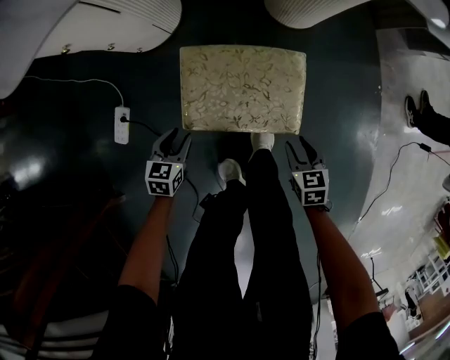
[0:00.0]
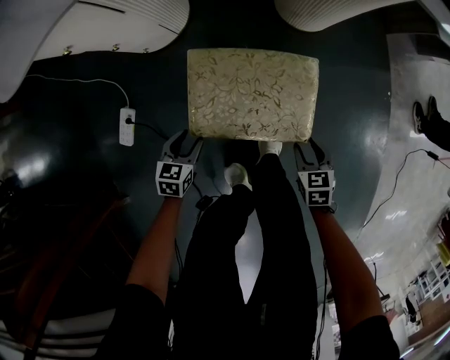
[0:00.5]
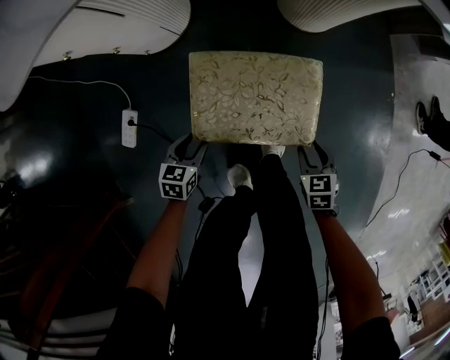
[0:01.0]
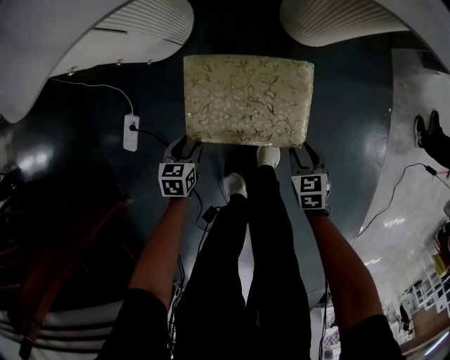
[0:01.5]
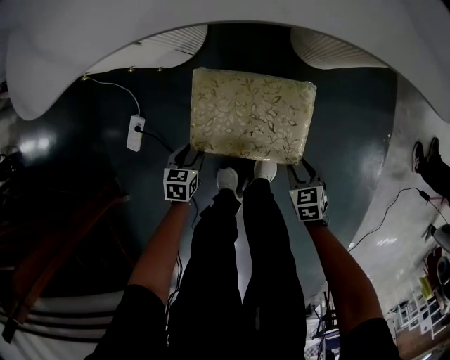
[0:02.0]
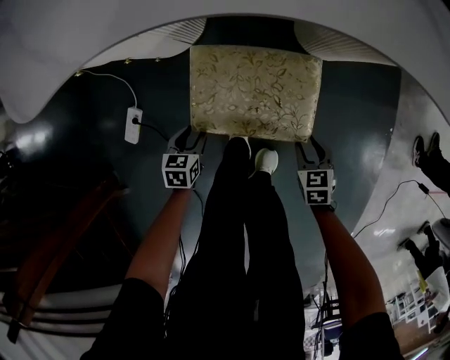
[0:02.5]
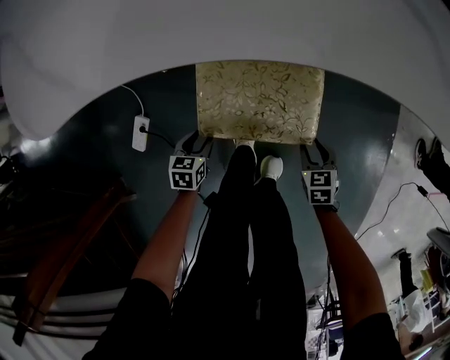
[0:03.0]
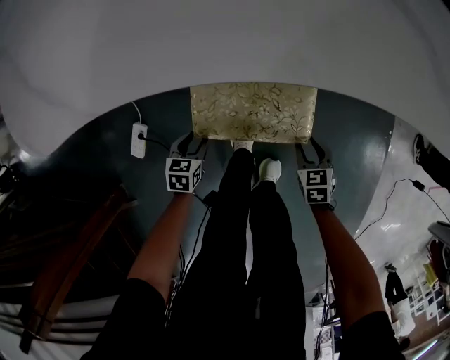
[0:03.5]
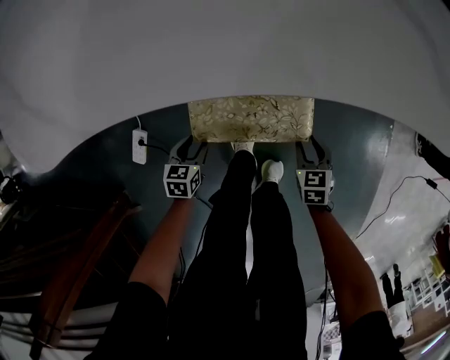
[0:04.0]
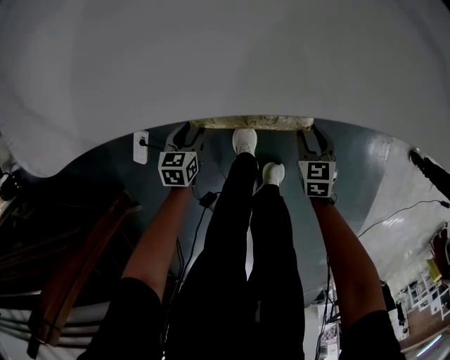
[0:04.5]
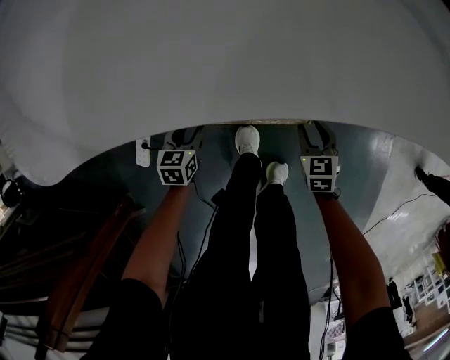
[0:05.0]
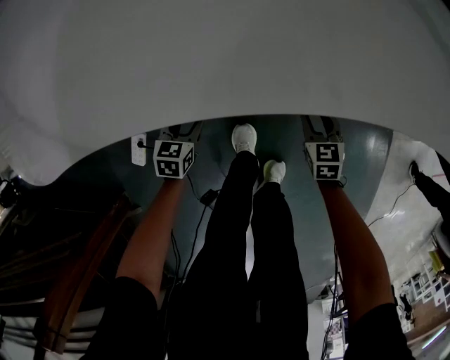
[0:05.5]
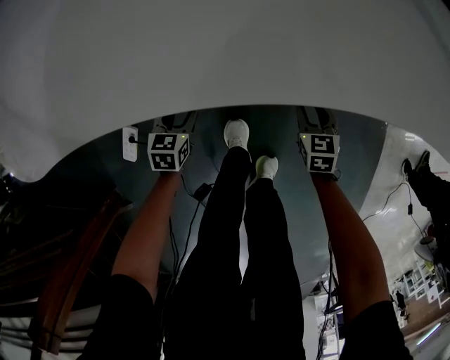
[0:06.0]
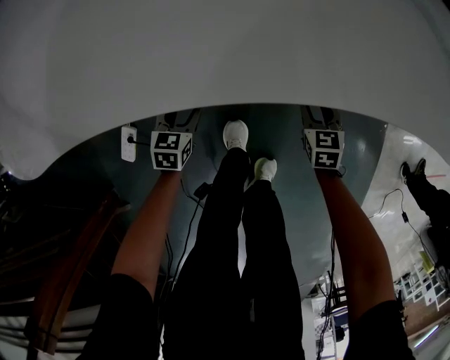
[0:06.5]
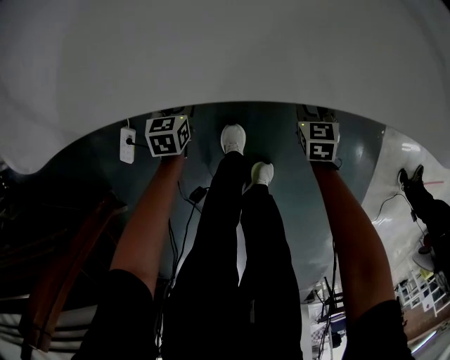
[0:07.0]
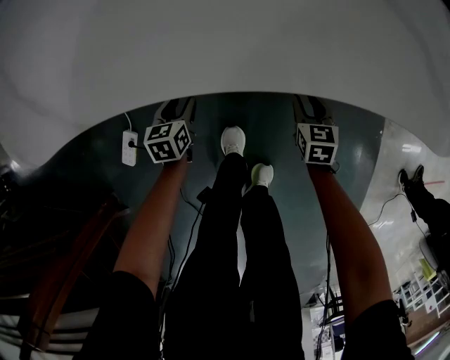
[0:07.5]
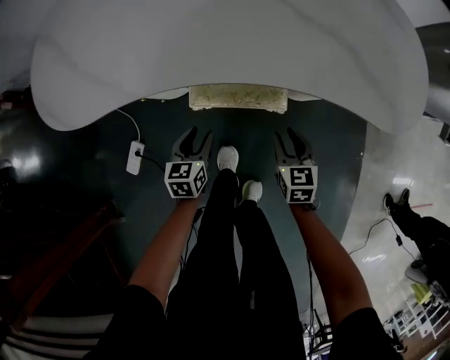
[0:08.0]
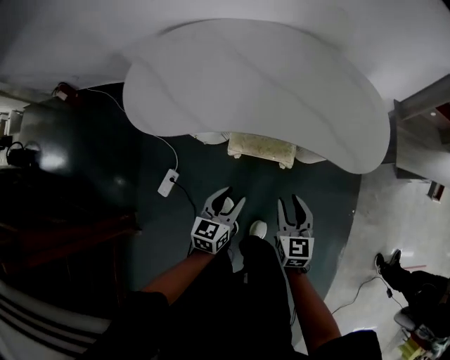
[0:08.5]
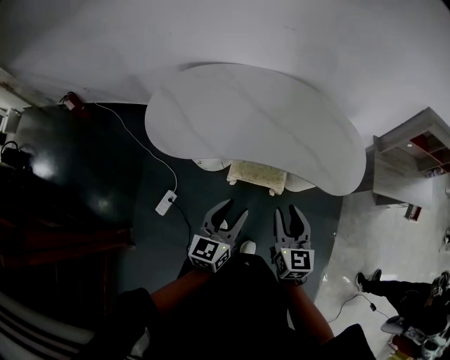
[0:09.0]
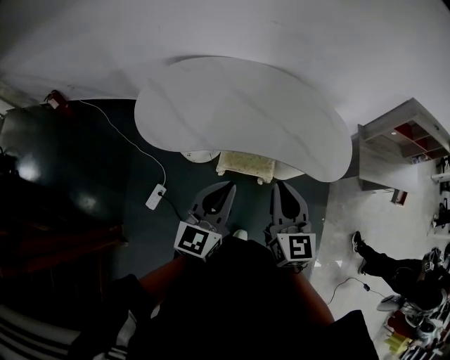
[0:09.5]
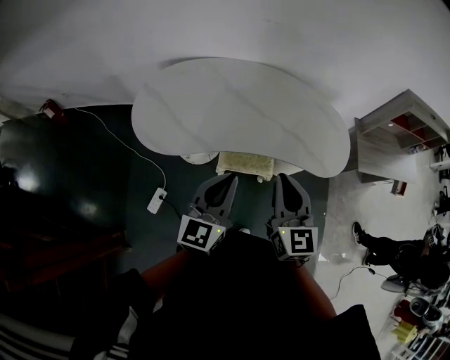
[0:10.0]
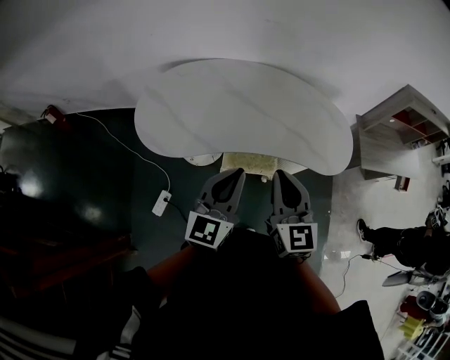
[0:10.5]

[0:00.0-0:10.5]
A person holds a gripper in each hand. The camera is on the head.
0:00.0 to 0:04.0: The grippers stay close to where they were, moving slightly.
0:04.0 to 0:06.5: Both grippers move forward, approximately 10 cm.
0:06.5 to 0:08.5: The two grippers go roughly 40 cm upward. The left gripper changes its angle by approximately 30 degrees, while the right gripper turns by some 30 degrees.
0:08.5 to 0:10.5: The grippers both shift upward by roughly 30 cm. The left gripper turns by some 30 degrees, and closes up. Meanwhile the right gripper turns by roughly 20 degrees, and closes its fingers.

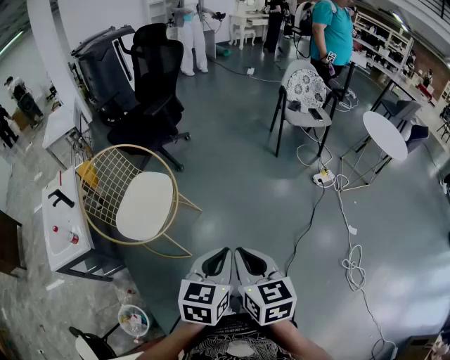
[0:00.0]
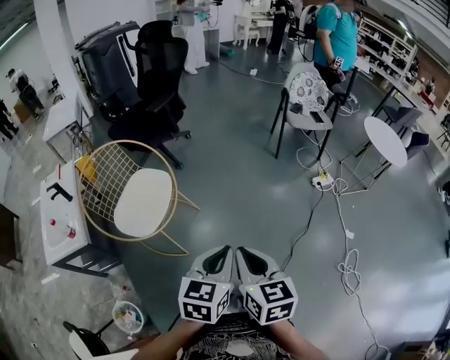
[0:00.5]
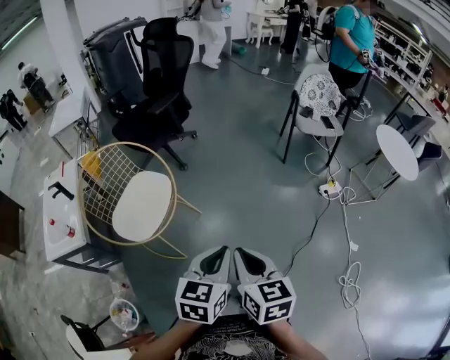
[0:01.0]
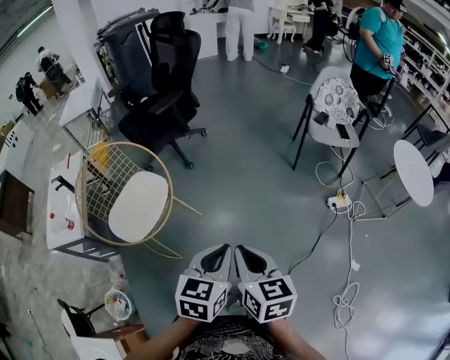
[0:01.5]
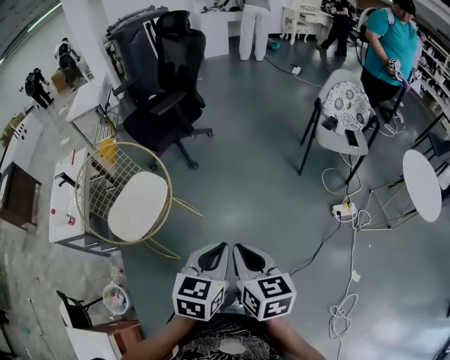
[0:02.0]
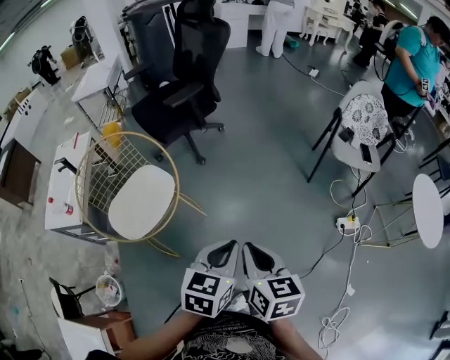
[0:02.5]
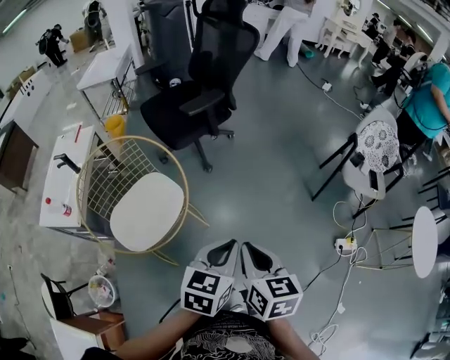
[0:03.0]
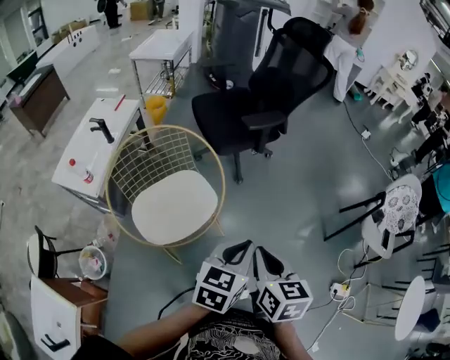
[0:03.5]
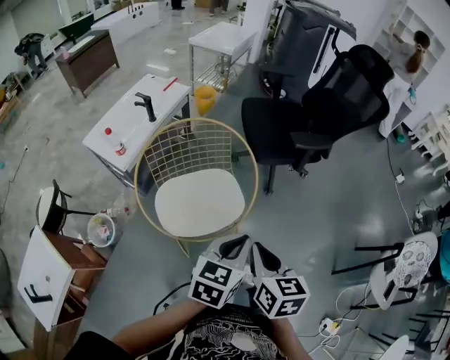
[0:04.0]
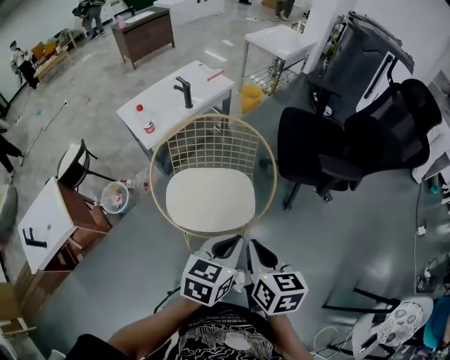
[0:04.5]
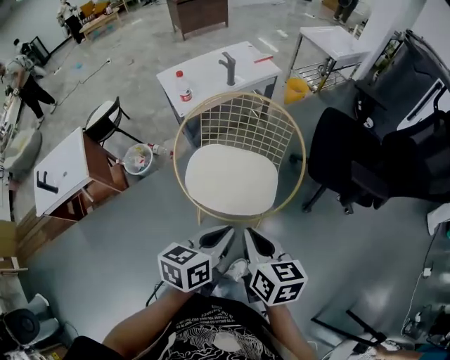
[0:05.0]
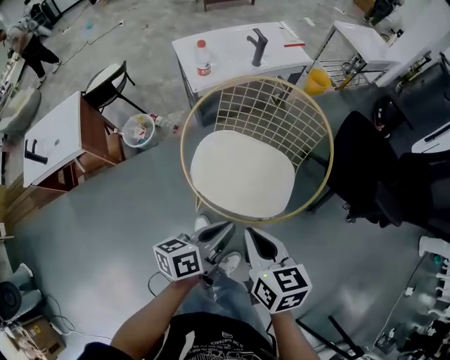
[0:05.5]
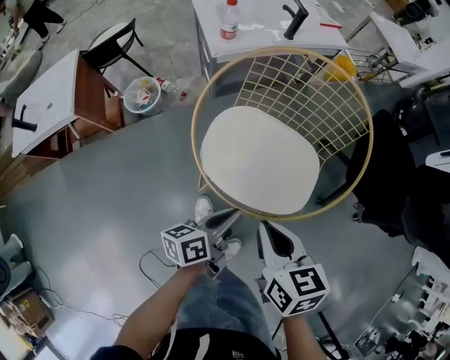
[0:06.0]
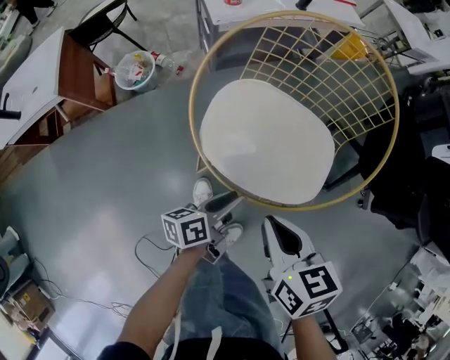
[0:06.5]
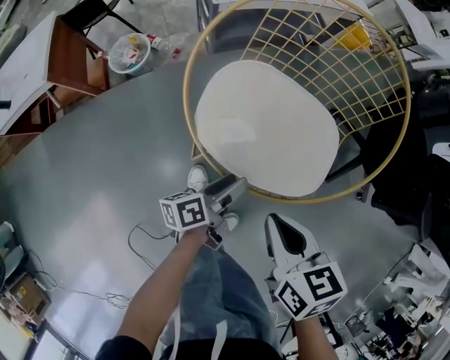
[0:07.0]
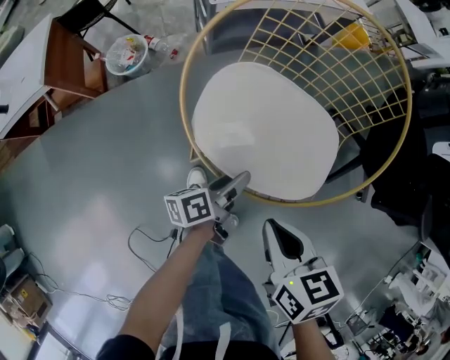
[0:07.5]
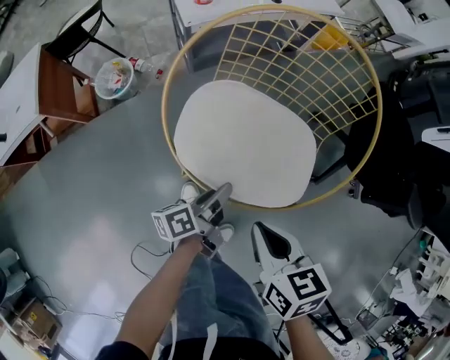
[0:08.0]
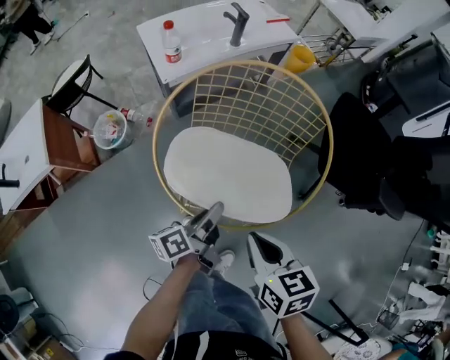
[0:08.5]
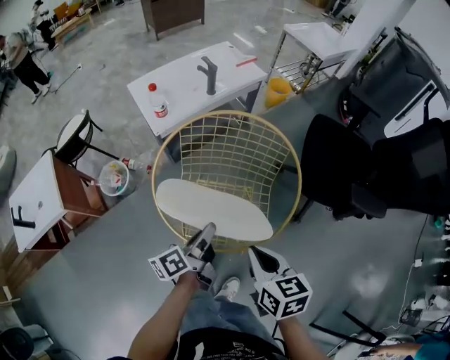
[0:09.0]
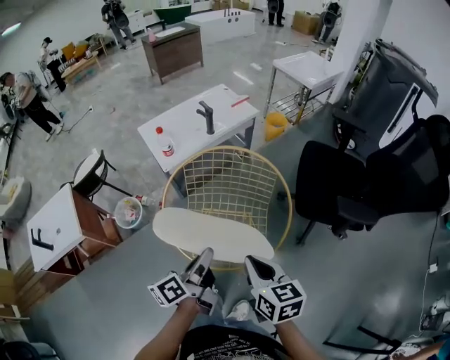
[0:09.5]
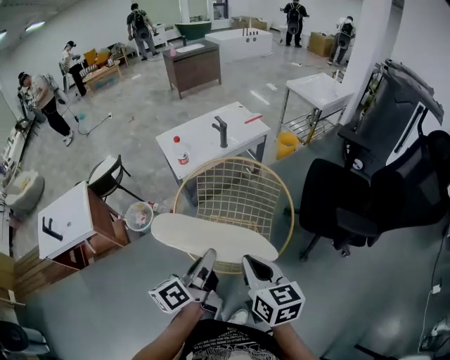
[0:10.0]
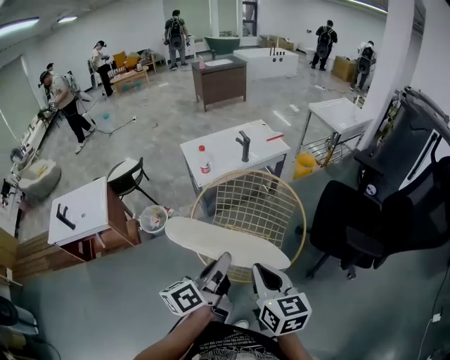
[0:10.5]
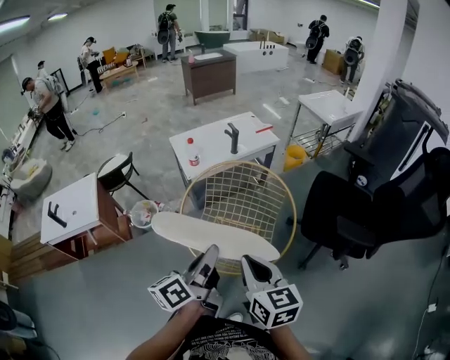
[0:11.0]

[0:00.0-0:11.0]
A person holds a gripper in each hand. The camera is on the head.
0:00.0 to 0:02.0: The grippers both shift forward and to the right by approximately 20 cm.
0:02.0 to 0:03.5: Both grippers travel together forward and to the left, approximately 25 cm.
0:03.5 to 0:05.5: The right gripper shifts by roughly 20 cm, and changes its angle by some 70 degrees; the left gripper shifts approximately 15 cm downward, and turns by about 70 degrees.
0:05.5 to 0:07.5: The left gripper travels downward by roughly 25 cm, turns by some 30 degrees, and opens up. Meanwhile the right gripper moves downward, approximately 15 cm.
0:07.5 to 0:09.0: The right gripper goes approximately 15 cm upward and to the right, and rotates about 20 degrees, while the left gripper goes approximately 20 cm upward, and closes up.
0:09.0 to 0:11.0: The right gripper heads upward, covering approximately 15 cm, and swivels approximately 20 degrees; the left gripper travels upward and backward by some 20 cm, and swivels approximately 20 degrees.

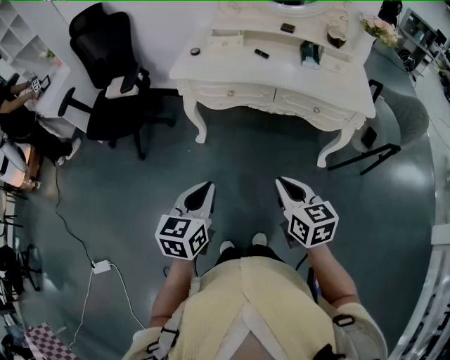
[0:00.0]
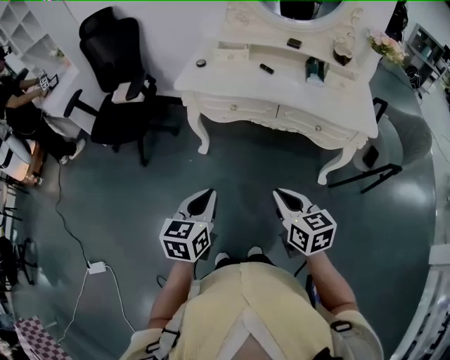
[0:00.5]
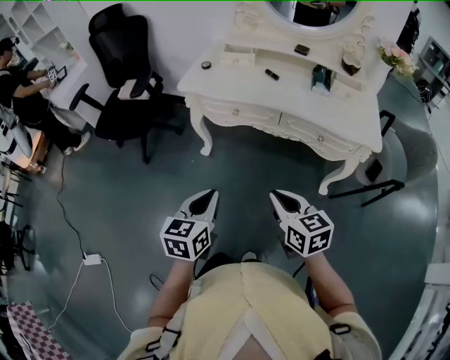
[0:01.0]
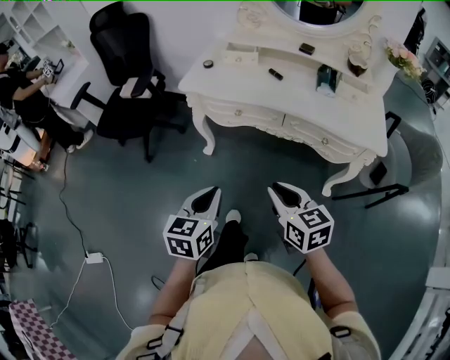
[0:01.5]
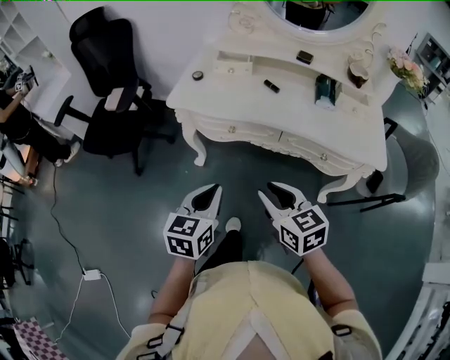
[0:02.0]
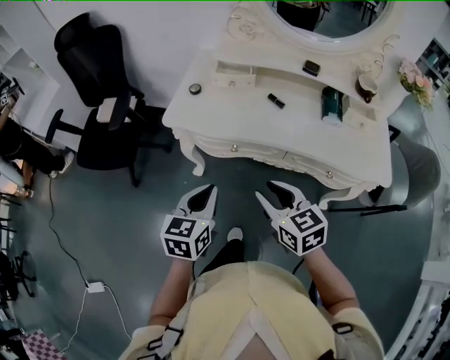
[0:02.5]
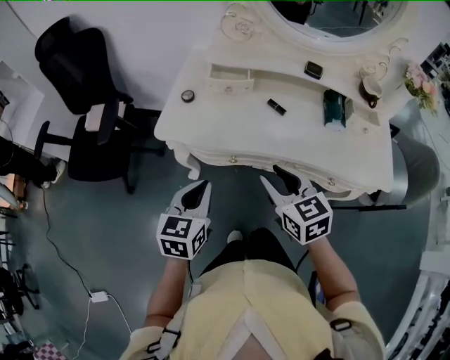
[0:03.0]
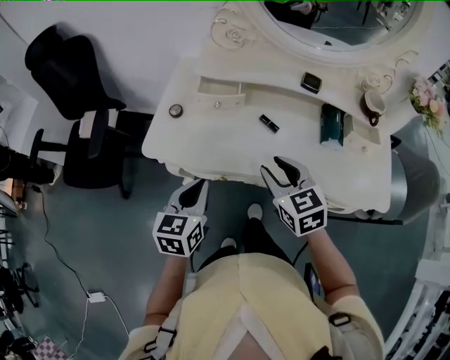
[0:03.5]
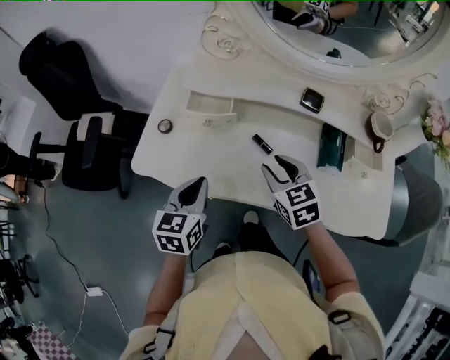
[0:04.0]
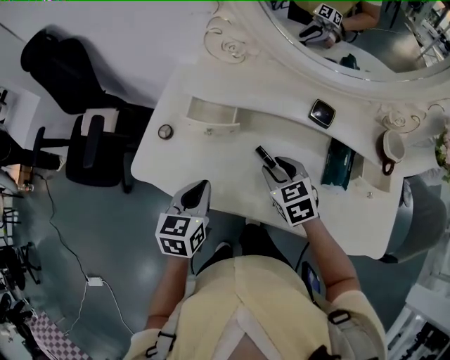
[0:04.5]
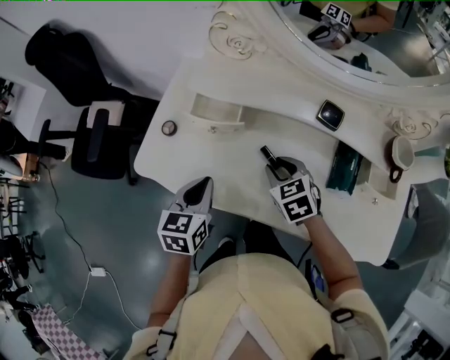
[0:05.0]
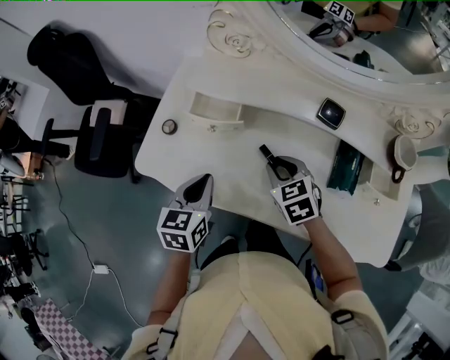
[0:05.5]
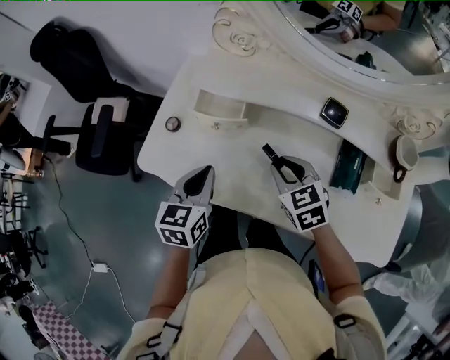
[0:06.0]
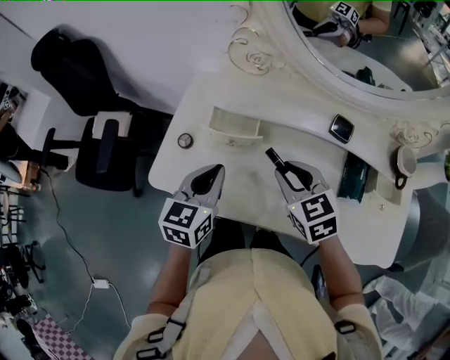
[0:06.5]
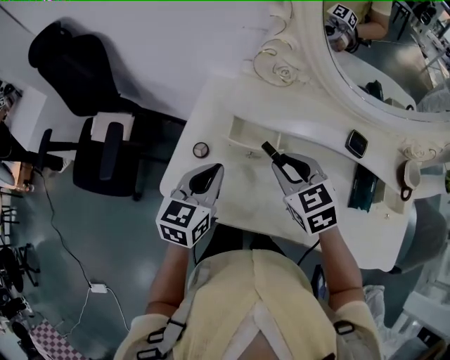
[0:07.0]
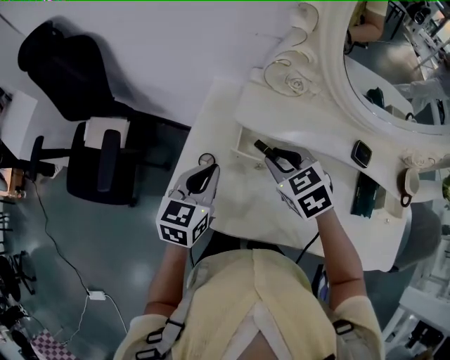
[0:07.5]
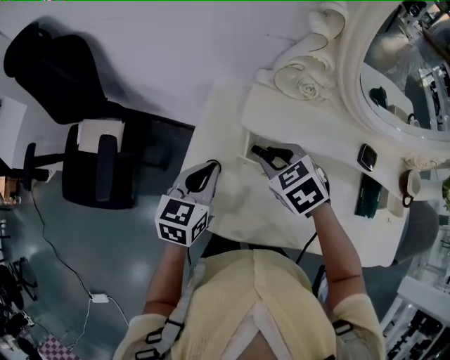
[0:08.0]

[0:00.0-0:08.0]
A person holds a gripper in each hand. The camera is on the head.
0:00.0 to 0:02.0: The two grippers go roughly 15 cm forward.
0:02.0 to 0:04.0: Both grippers travel together forward, some 35 cm.
0:04.0 to 0:06.0: The left gripper heads forward, covering about 5 cm.
0:06.0 to 0:08.0: The left gripper is displaced forward and to the left by approximately 20 cm. The right gripper travels to the left and forward by some 25 cm.
